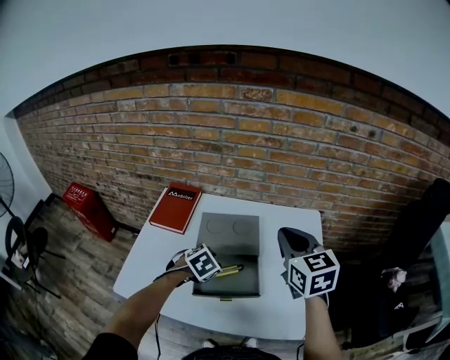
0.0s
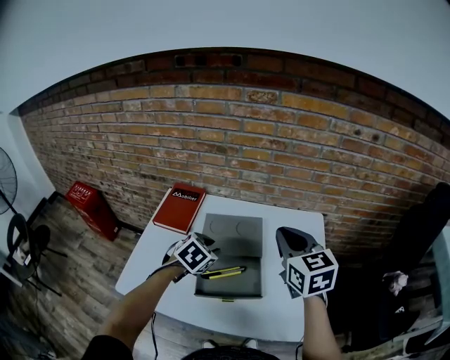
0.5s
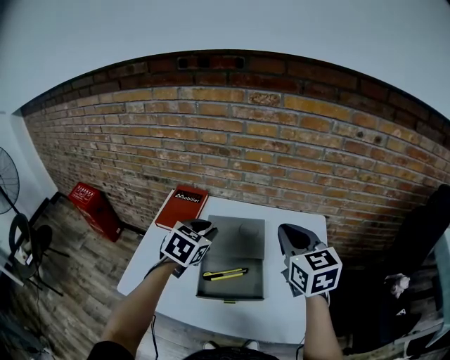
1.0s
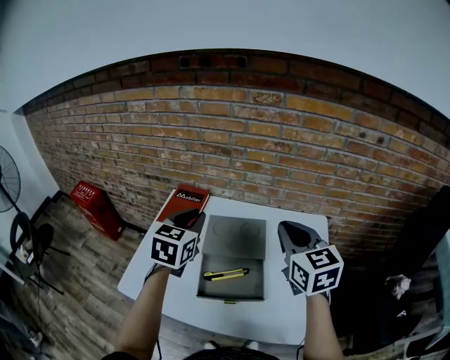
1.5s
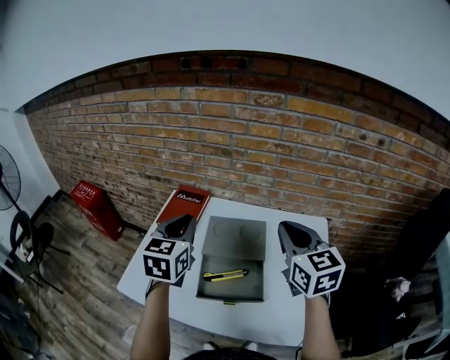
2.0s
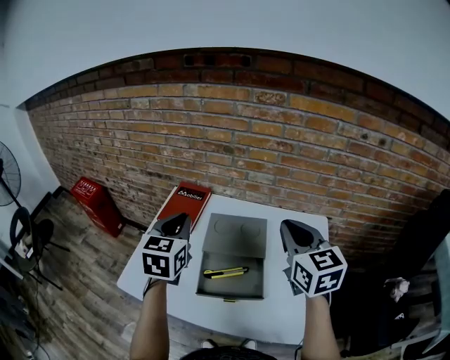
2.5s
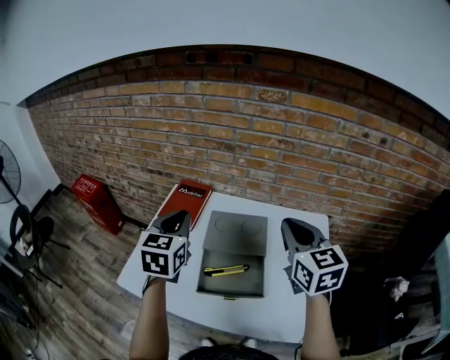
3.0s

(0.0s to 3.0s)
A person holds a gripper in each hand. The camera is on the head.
0.0s - 1.5s: The left gripper heads upward, covering approximately 20 cm, and points its fingers about 40 degrees further upward.
1.5s - 3.0s: The left gripper changes place by about 5 cm.

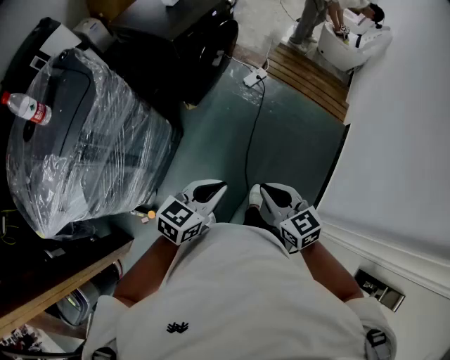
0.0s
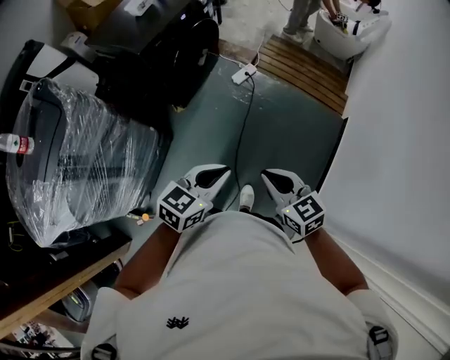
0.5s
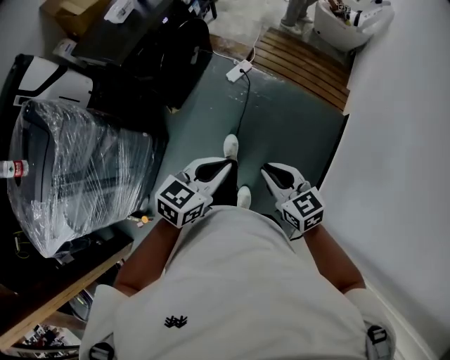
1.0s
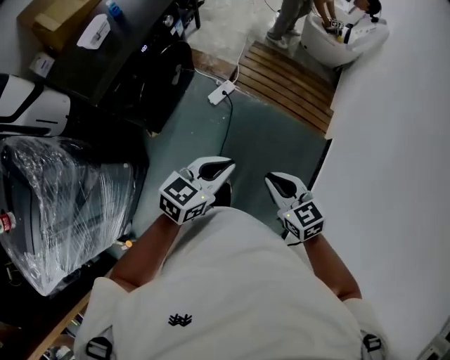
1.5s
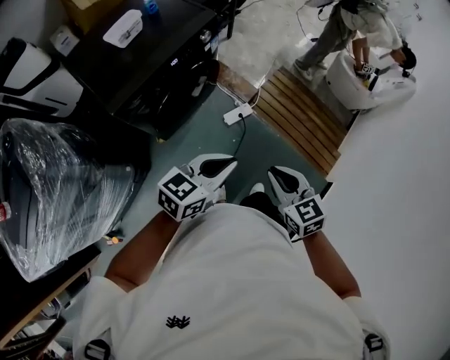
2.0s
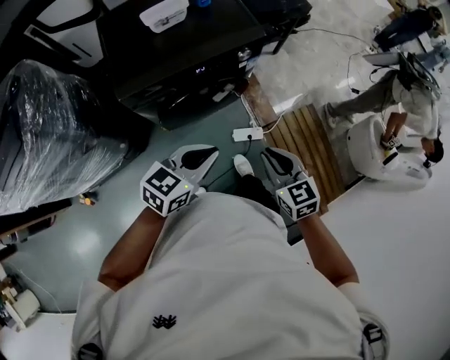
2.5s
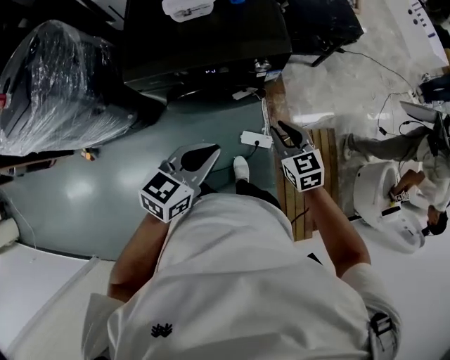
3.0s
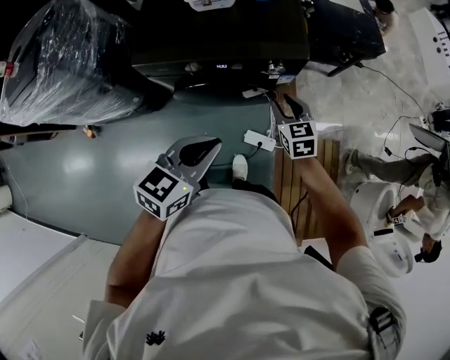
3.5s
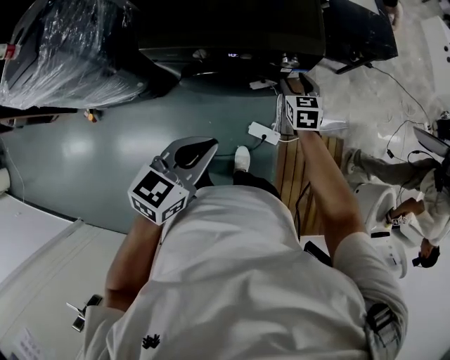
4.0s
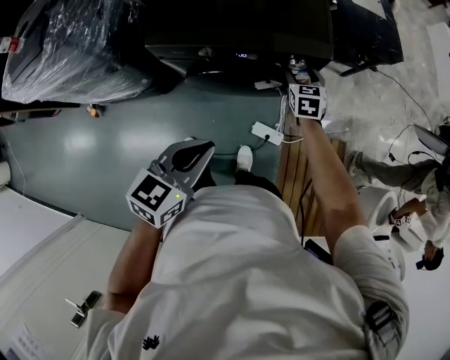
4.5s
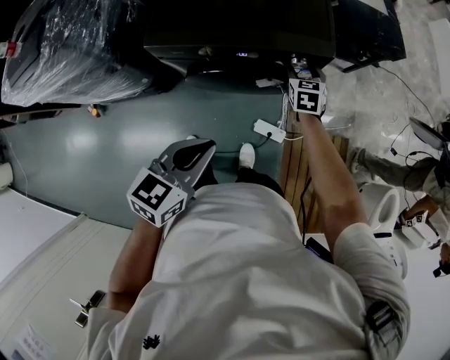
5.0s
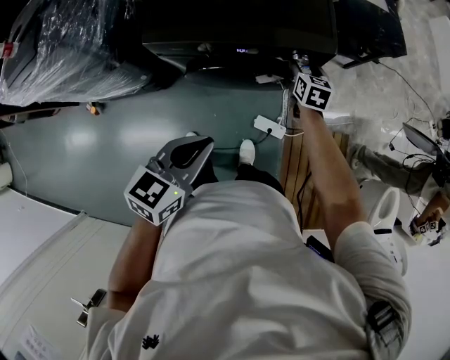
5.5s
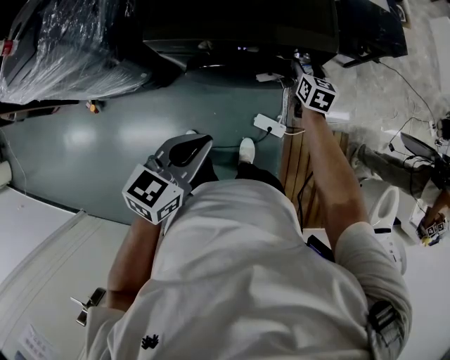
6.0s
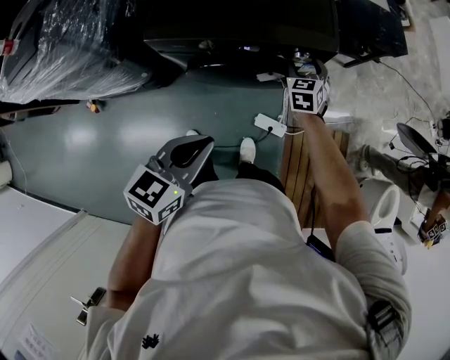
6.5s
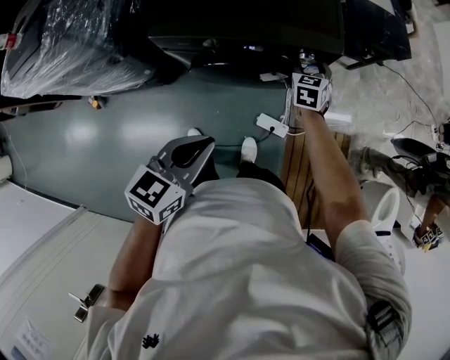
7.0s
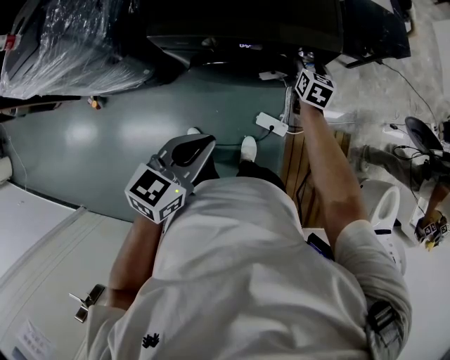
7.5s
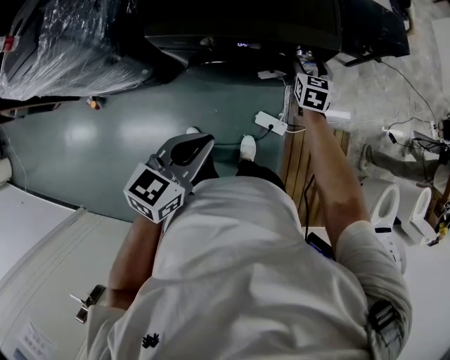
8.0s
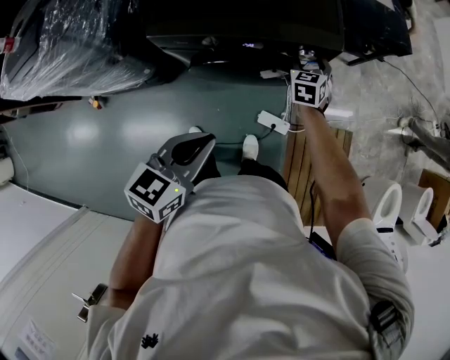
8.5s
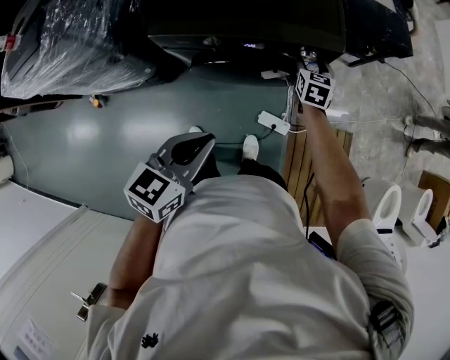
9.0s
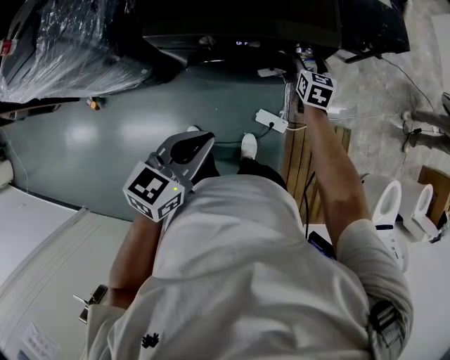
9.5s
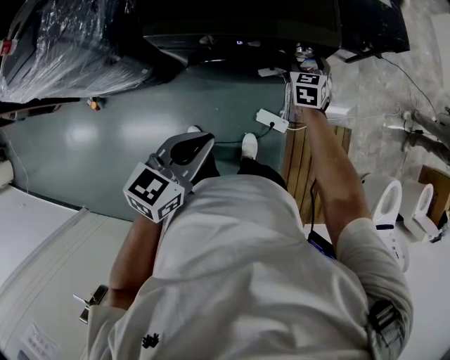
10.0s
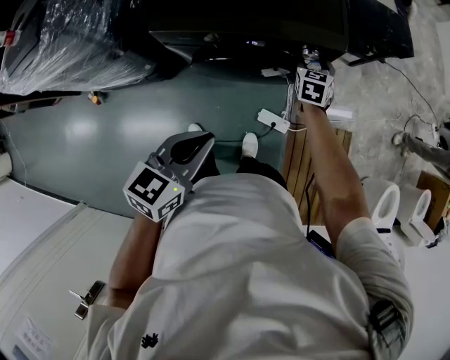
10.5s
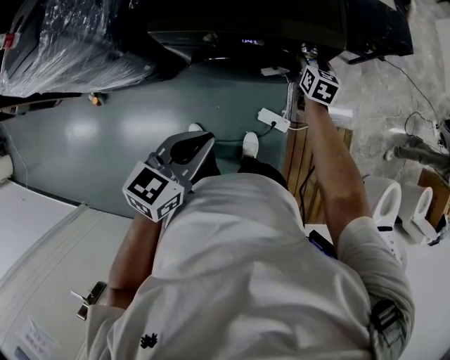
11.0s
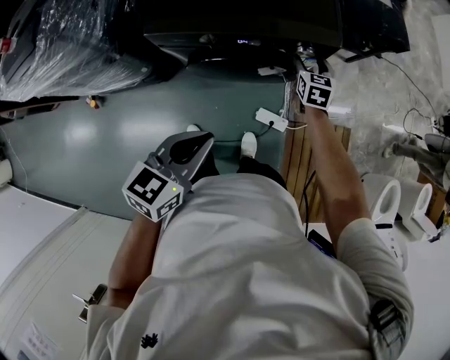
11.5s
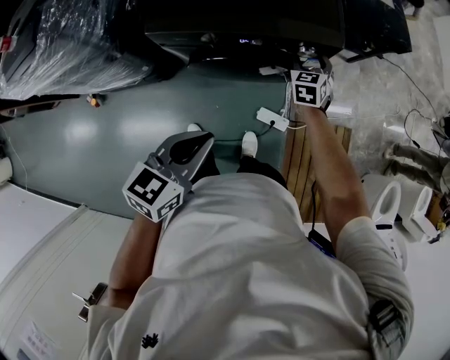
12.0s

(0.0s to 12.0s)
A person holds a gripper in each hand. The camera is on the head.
0.0s - 2.0s: Both grippers are carried forward, roughly 60 cm.
2.0s - 4.0s: The right gripper changes place by about 60 cm, swivels approximately 30 degrees, and opens its fingers. The left gripper moves approximately 20 cm, and changes its angle by approximately 60 degrees.
8.0s - 10.0s: The grippers move only a little.

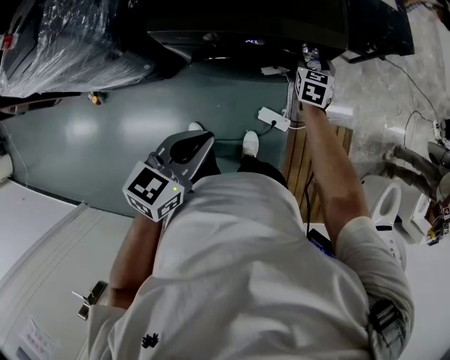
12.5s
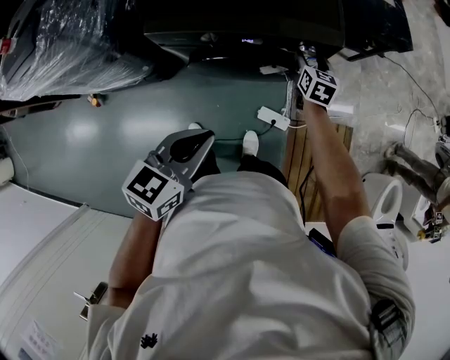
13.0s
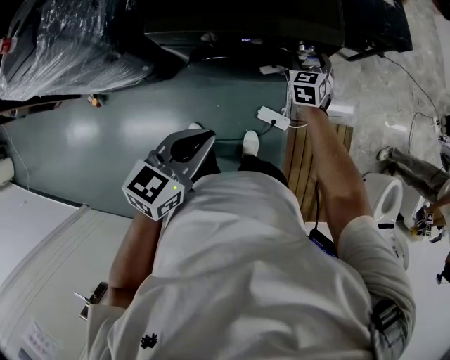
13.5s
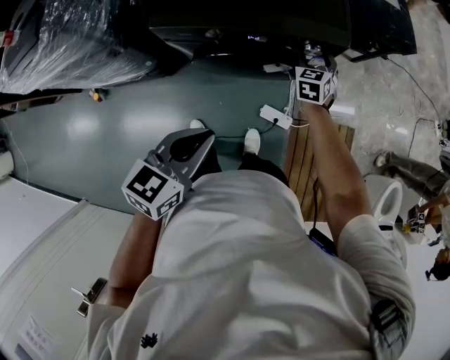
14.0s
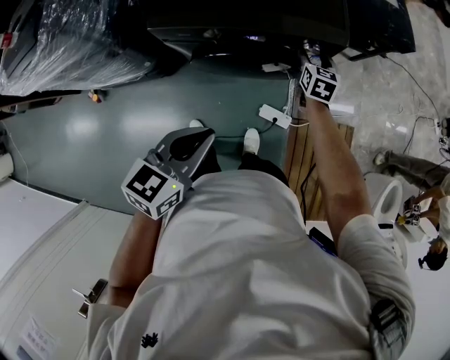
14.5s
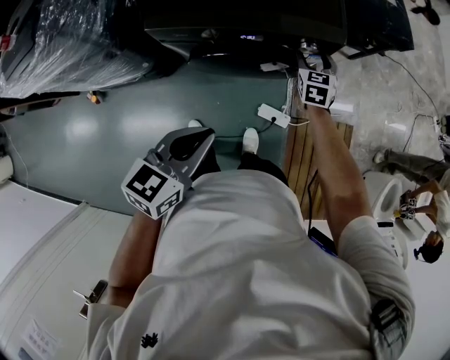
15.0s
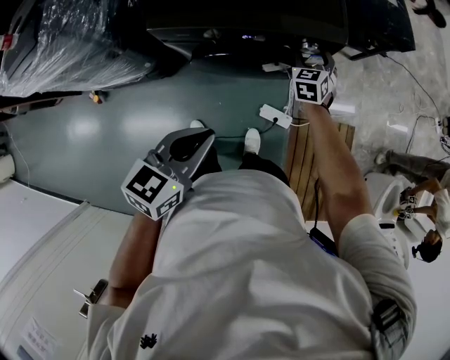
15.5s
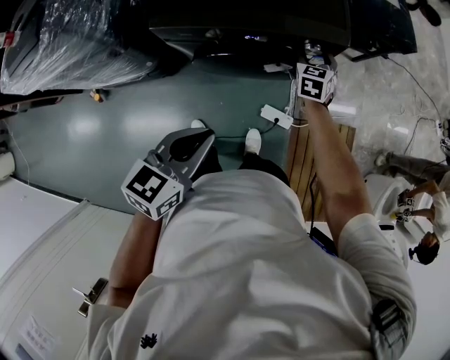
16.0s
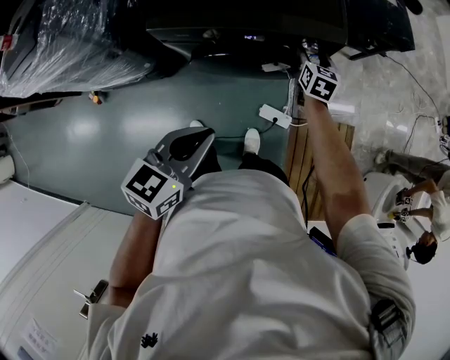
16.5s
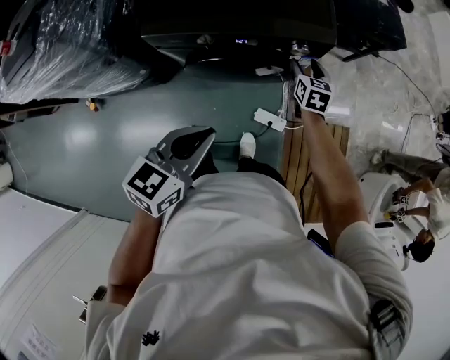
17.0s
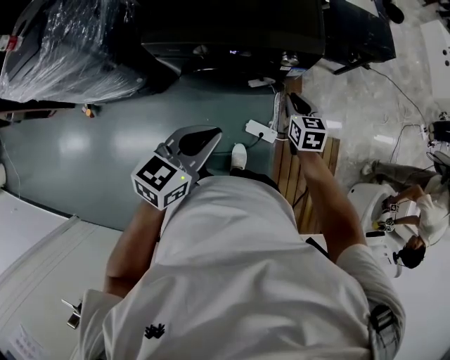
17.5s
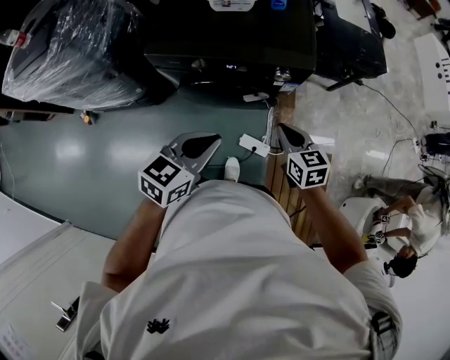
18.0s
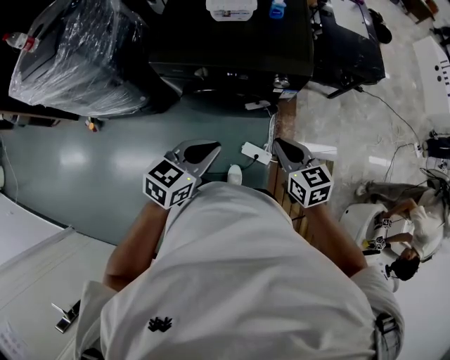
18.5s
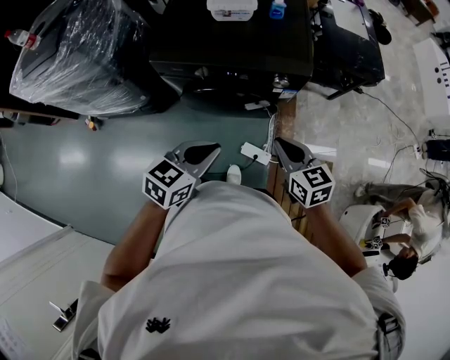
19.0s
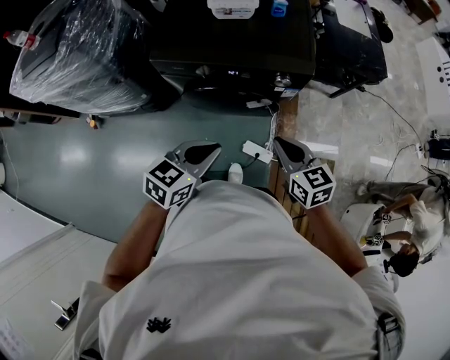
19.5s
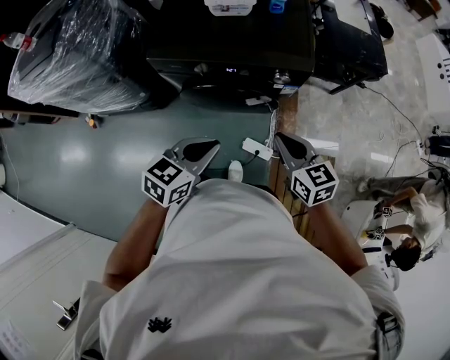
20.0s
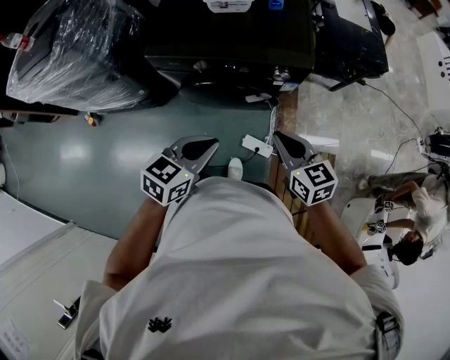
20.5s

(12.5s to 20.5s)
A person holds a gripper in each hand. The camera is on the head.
12.5s - 14.5s: The grippers stay close to where they were, moving slightly.
16.5s - 18.5s: The left gripper is displaced to the right by roughly 5 cm. The right gripper is displaced backward and upward by some 25 cm, changes its angle by approximately 30 degrees, and closes up.
18.5s - 20.5s: There are only small adjustments of the grippers.

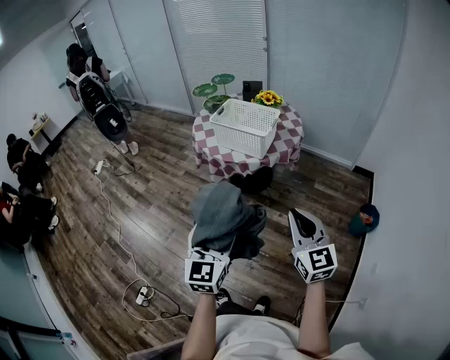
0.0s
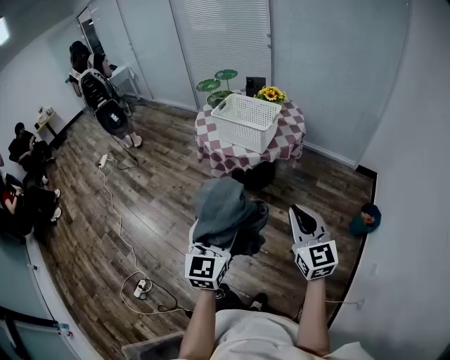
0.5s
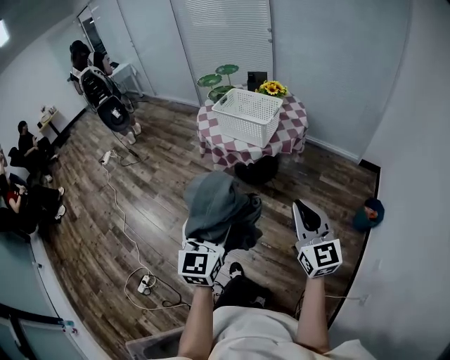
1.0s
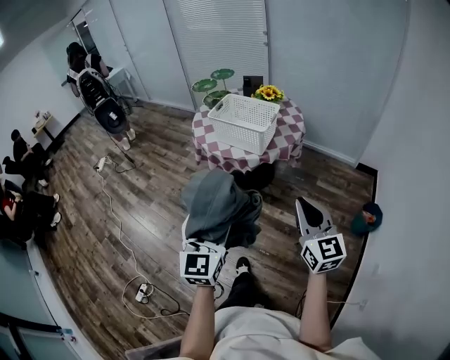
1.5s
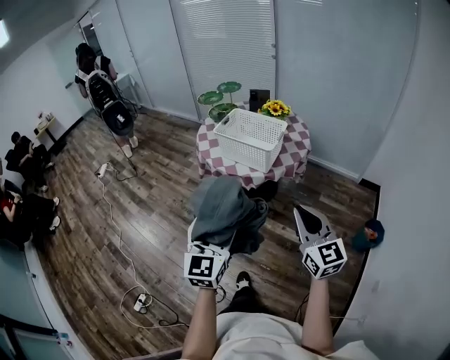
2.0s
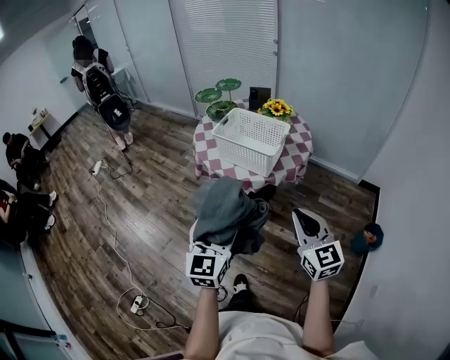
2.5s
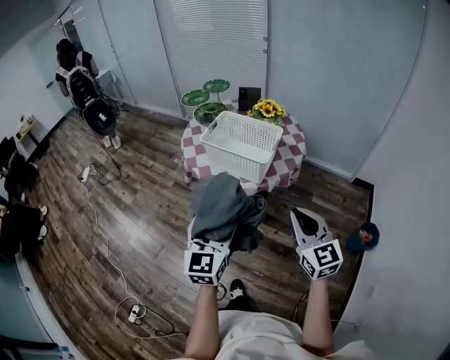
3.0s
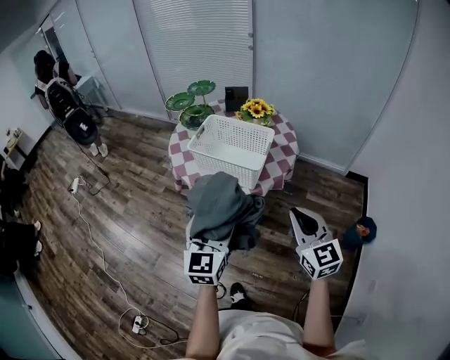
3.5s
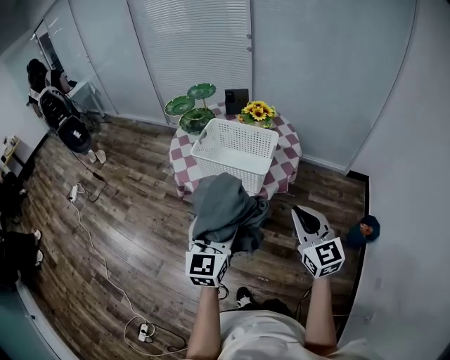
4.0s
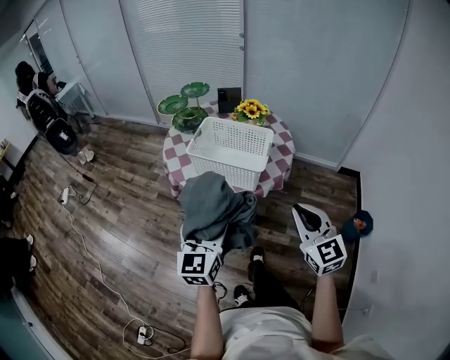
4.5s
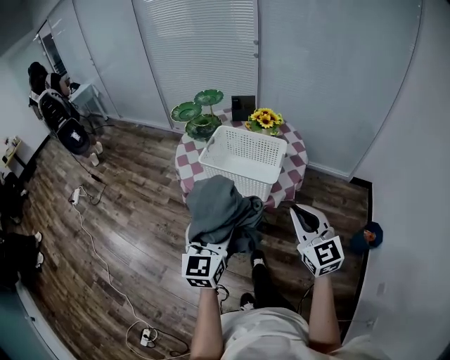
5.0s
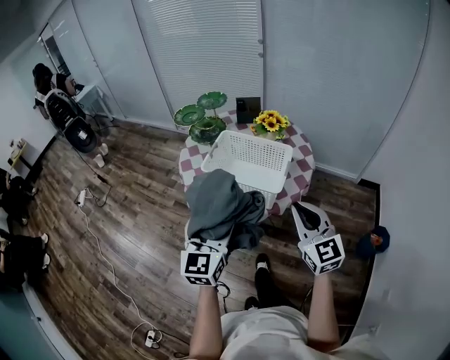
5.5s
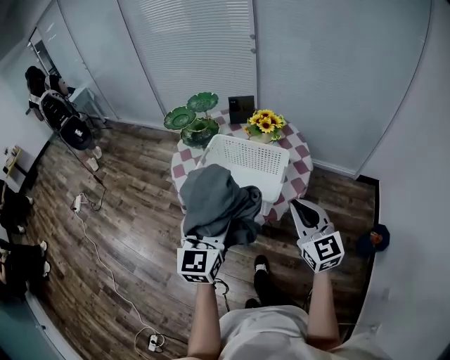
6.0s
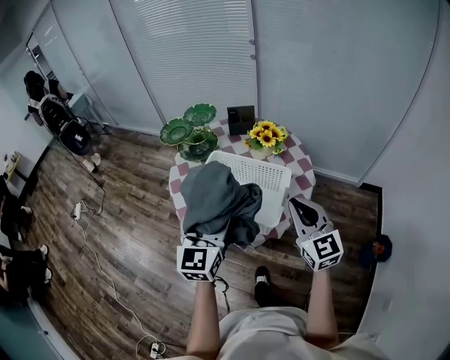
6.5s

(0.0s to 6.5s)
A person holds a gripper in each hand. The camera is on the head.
0.0s - 2.0s: The grippers both shift forward by roughly 10 cm.
2.0s - 4.5s: The two grippers go roughly 20 cm forward.
4.5s - 6.5s: Both grippers move forward, roughly 25 cm.
